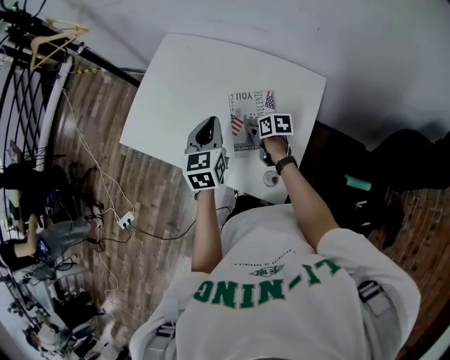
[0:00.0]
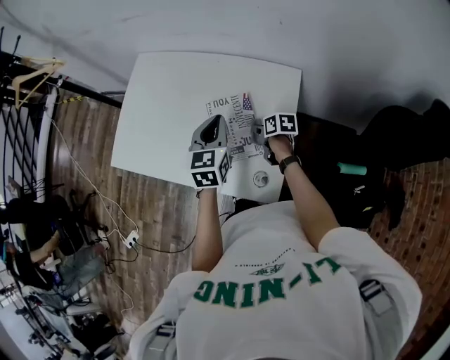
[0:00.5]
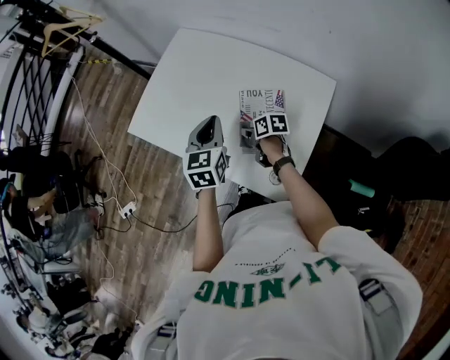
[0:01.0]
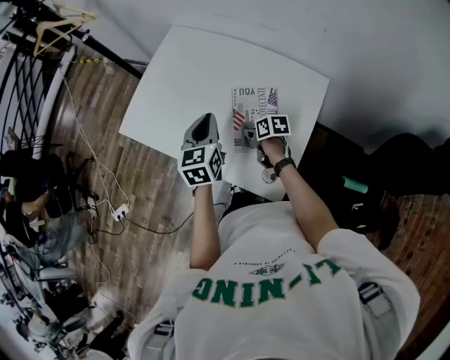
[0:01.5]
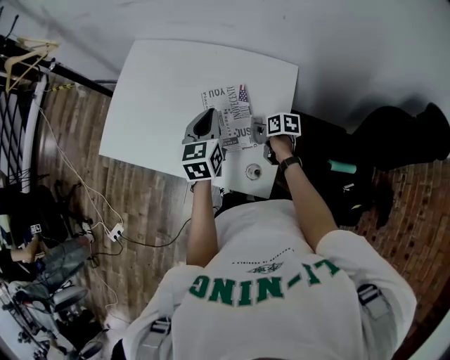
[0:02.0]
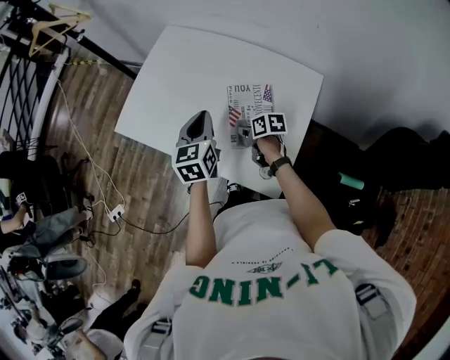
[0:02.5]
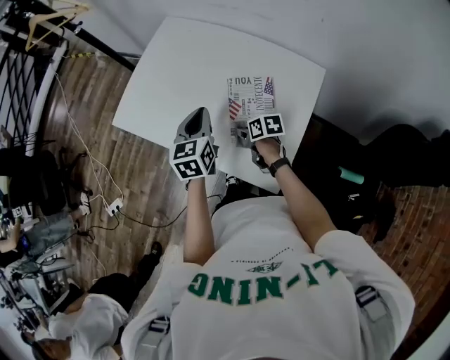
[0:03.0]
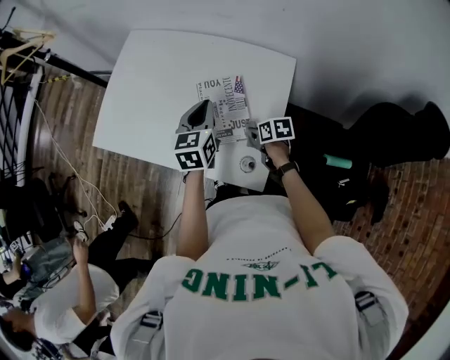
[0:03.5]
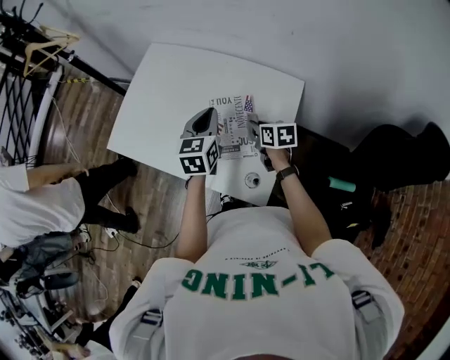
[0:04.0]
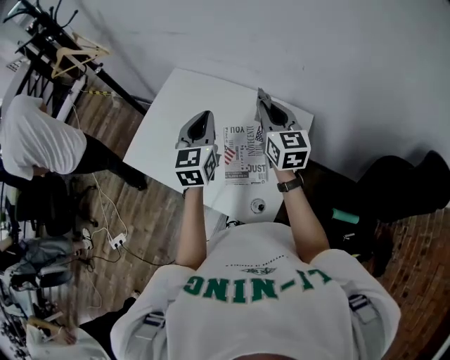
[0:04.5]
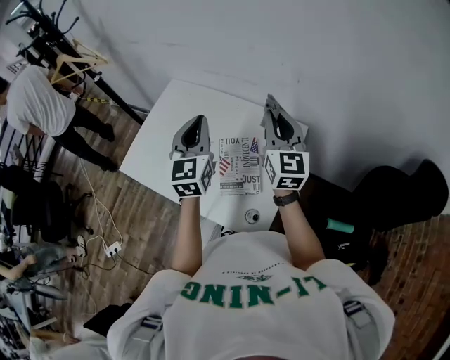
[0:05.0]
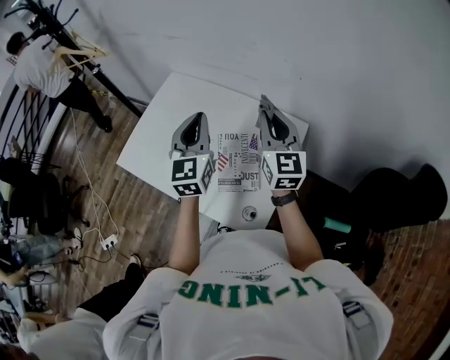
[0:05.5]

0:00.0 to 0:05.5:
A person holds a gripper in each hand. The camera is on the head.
0:00.0 to 0:02.0: The left gripper moves left and right over some 10 cm, changing direction 2 times. Meanwhile the right gripper goes left and right, about 15 cm each way, reversing 2 times.
0:02.0 to 0:03.5: The left gripper reaches about 10 cm to the left, then returns. The right gripper moves about 15 cm to the left and comes back.
0:03.5 to 0:05.5: The right gripper shifts roughly 35 cm upward, and angles its fingers upward, by approximately 50 degrees, while the left gripper heads upward, covering roughly 20 cm, and turns by roughly 30 degrees.

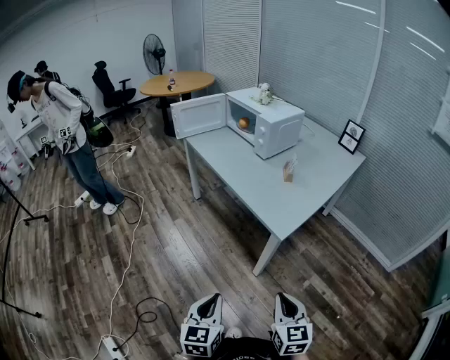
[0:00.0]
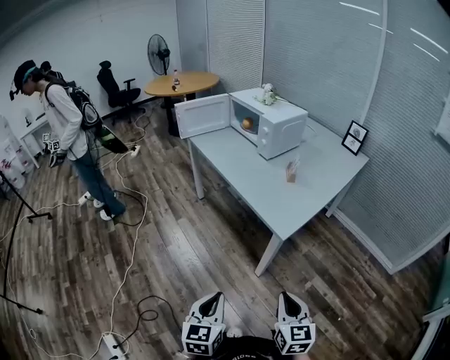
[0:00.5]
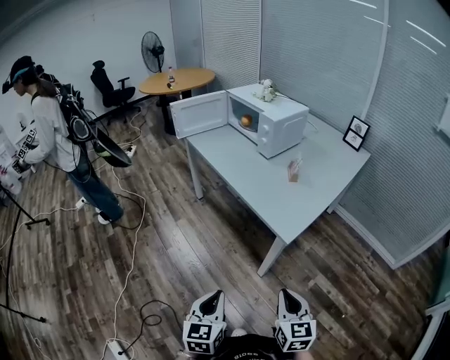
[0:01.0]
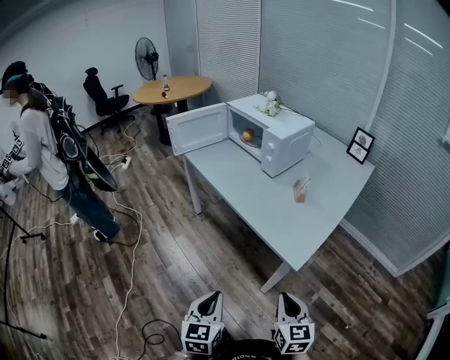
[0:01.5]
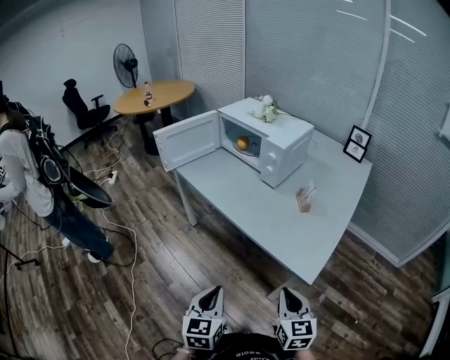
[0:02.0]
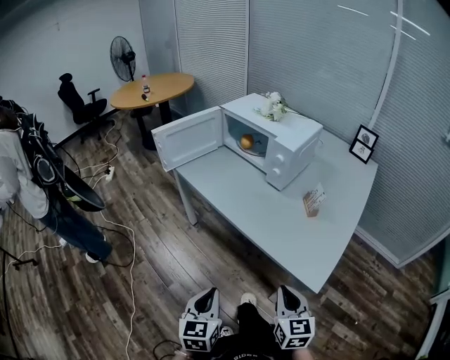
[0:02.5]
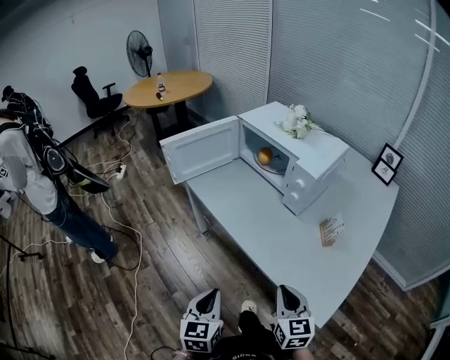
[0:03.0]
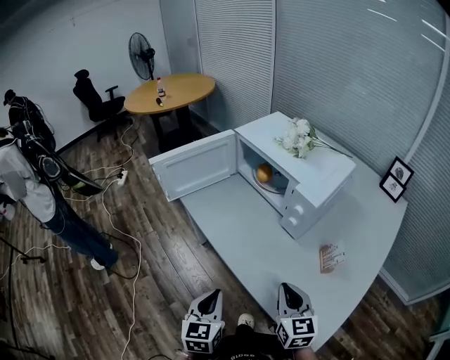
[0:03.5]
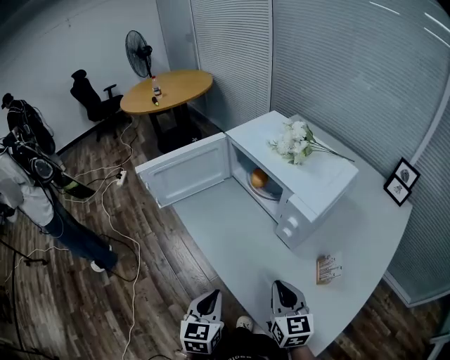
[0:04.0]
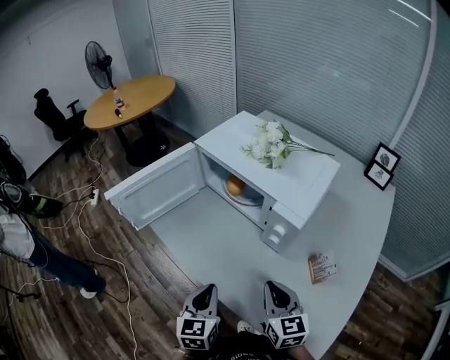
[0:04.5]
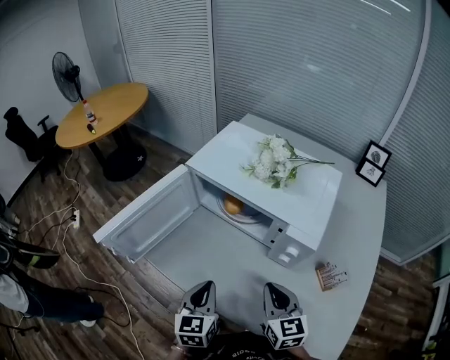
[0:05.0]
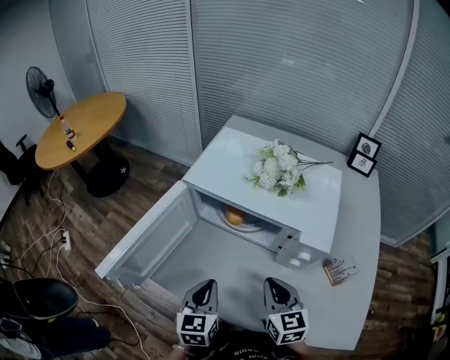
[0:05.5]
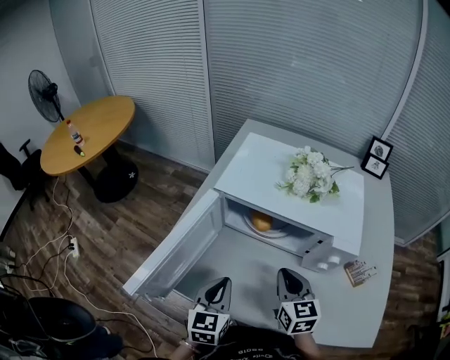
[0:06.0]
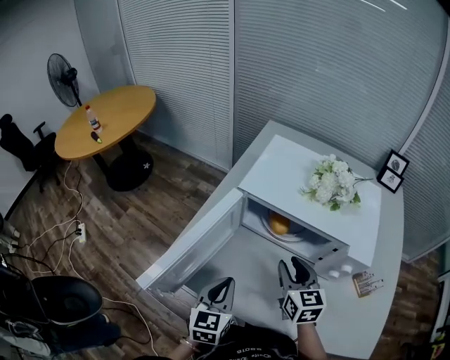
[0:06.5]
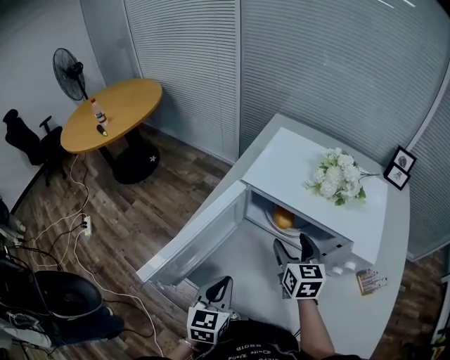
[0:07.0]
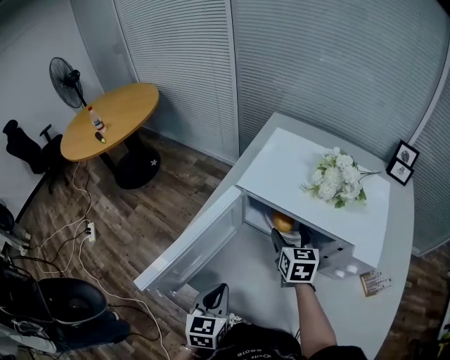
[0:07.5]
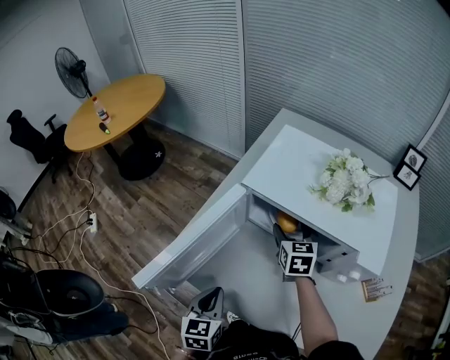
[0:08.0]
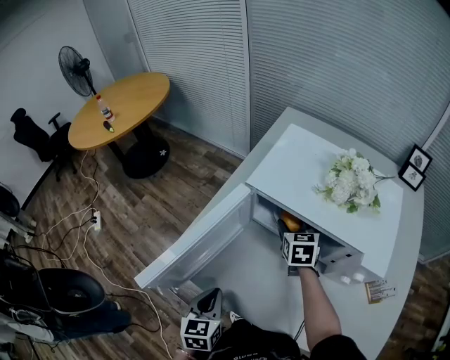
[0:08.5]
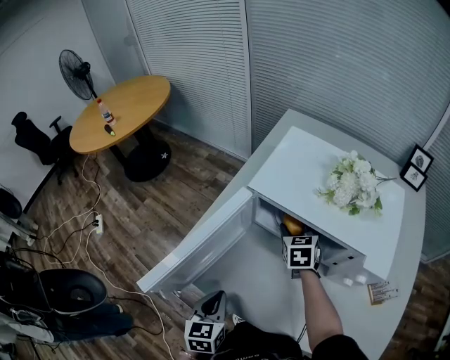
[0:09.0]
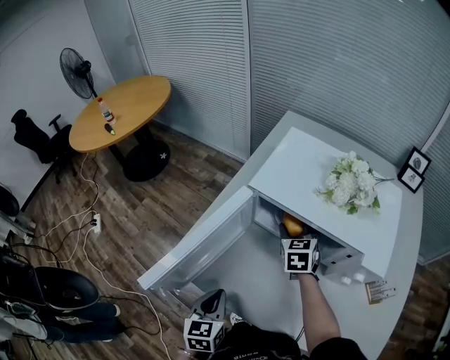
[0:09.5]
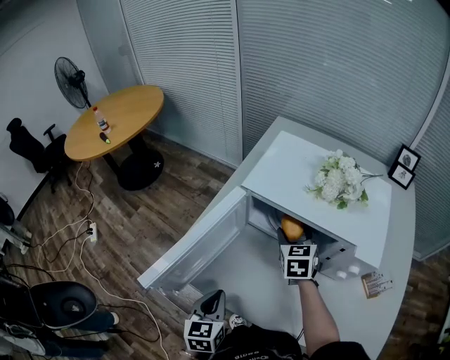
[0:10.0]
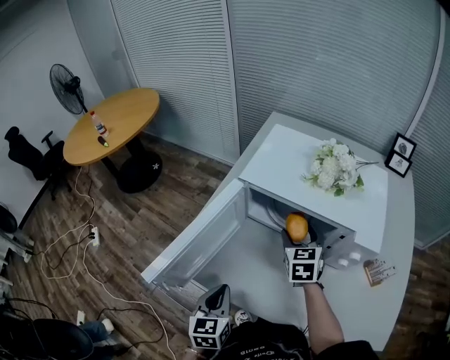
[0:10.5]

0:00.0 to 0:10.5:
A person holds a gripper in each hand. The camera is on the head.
0:00.0 to 0:02.0: Both grippers move forward and to the left, approximately 25 cm.
0:02.0 to 0:04.0: Both grippers travel together forward, roughly 35 cm.
0:04.0 to 0:06.5: The left gripper ends up about 35 cm from where it was, and rotates roughly 30 degrees. The right gripper changes place by about 30 cm, changes its angle by about 30 degrees, and opens up.
0:06.5 to 0:08.5: The right gripper travels forward by about 15 cm, and opens up, while the left gripper heads downward, covering roughly 5 cm.
0:08.5 to 0:10.5: The right gripper moves backward, approximately 10 cm.

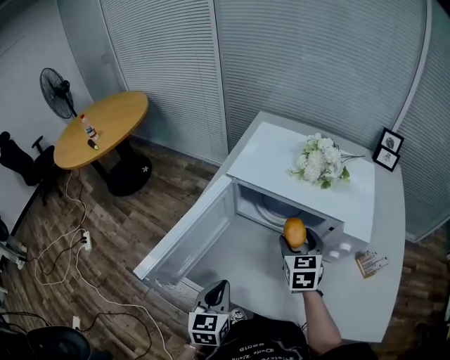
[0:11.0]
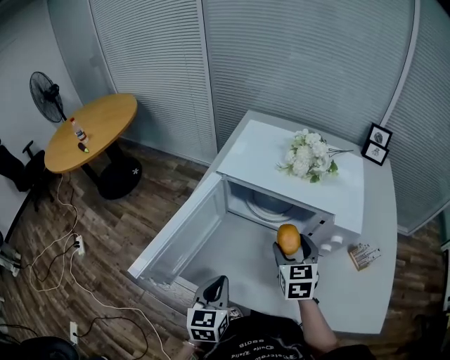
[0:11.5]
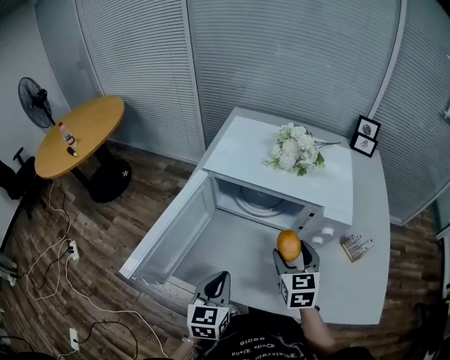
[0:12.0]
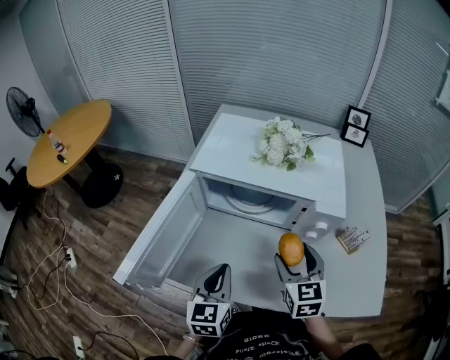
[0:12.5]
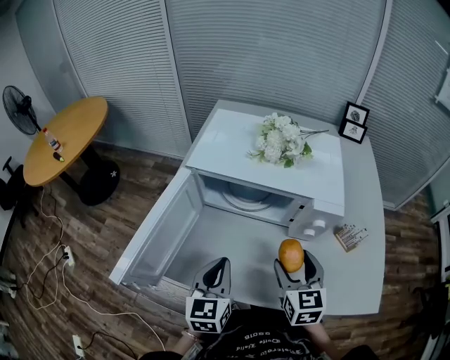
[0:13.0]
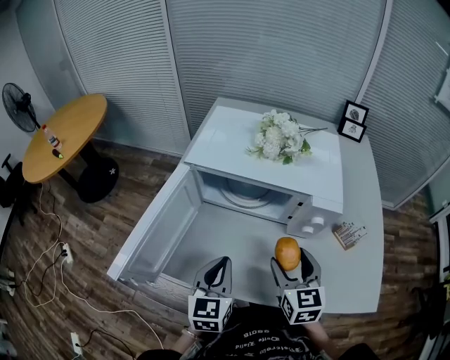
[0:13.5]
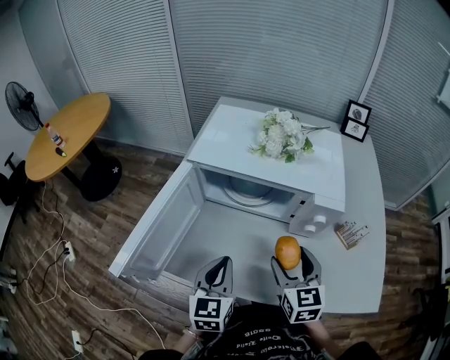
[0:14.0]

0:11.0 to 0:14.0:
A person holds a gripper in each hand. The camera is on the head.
0:11.0 to 0:12.5: The left gripper is displaced to the right by approximately 5 cm, while the right gripper heads backward and to the right, covering about 10 cm.
0:12.5 to 0:14.0: There are only small adjustments of the grippers.

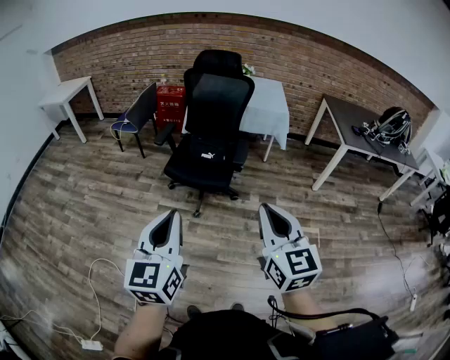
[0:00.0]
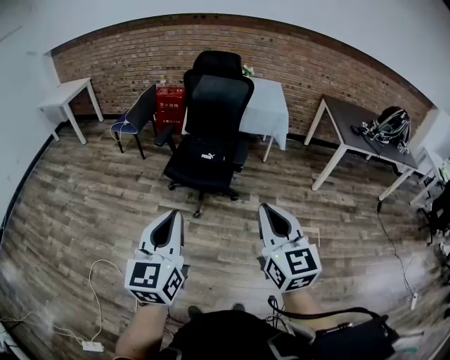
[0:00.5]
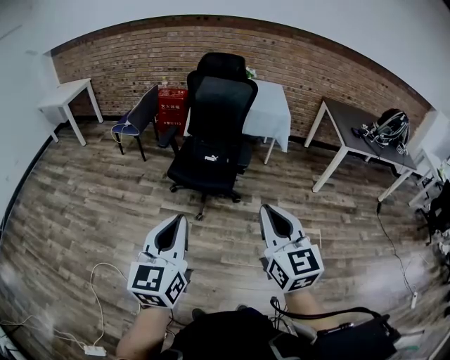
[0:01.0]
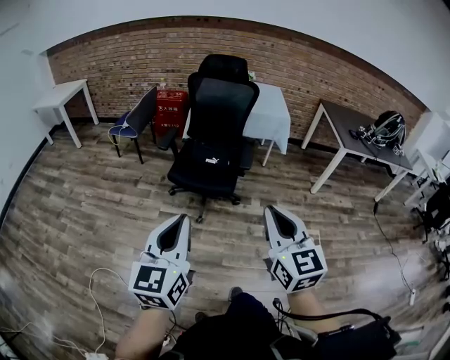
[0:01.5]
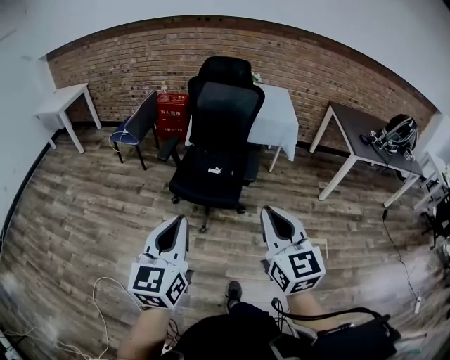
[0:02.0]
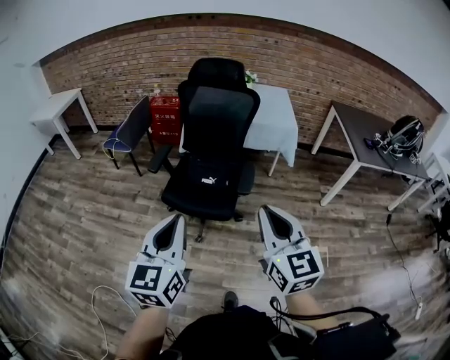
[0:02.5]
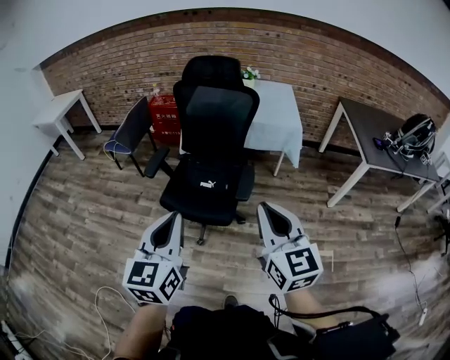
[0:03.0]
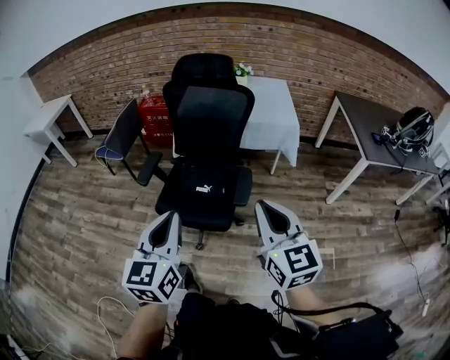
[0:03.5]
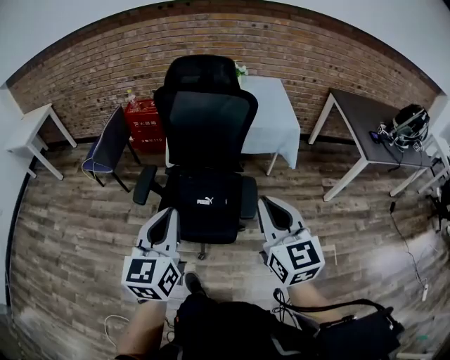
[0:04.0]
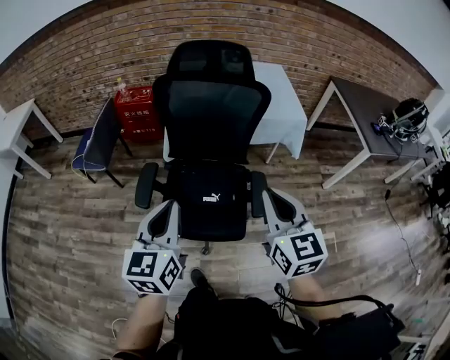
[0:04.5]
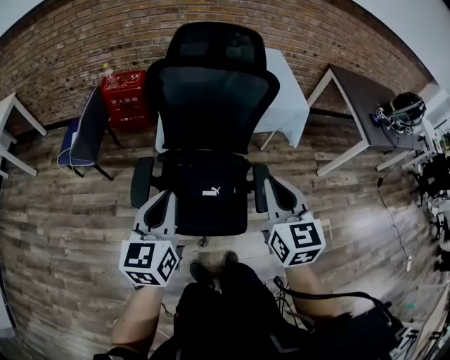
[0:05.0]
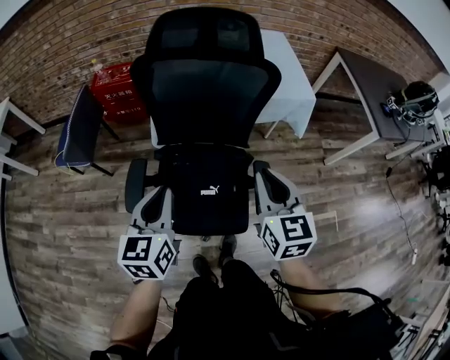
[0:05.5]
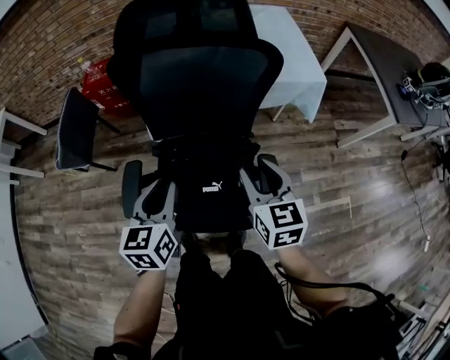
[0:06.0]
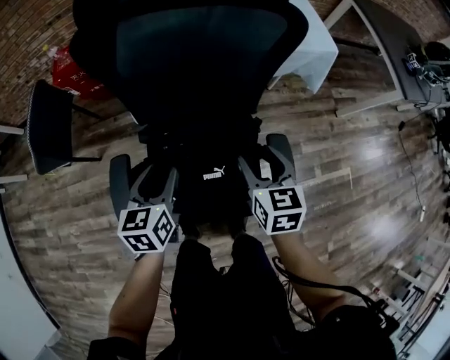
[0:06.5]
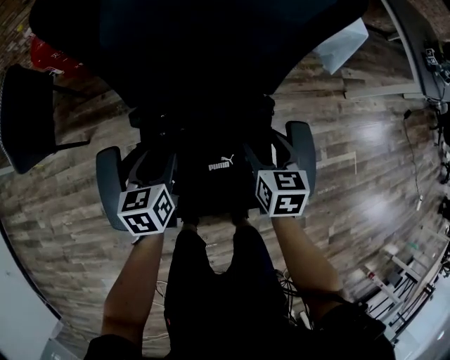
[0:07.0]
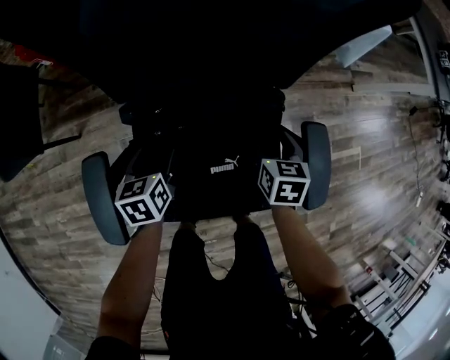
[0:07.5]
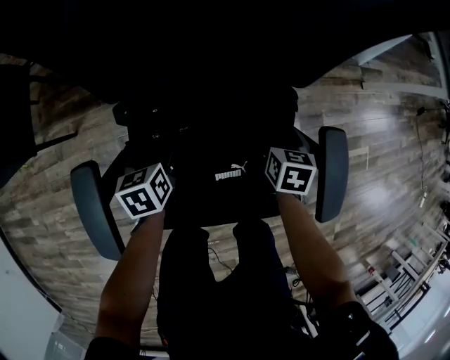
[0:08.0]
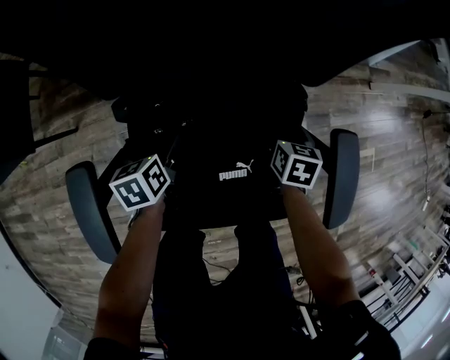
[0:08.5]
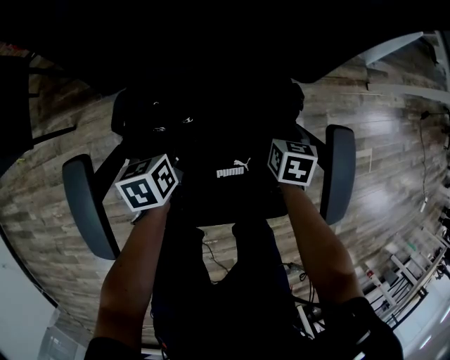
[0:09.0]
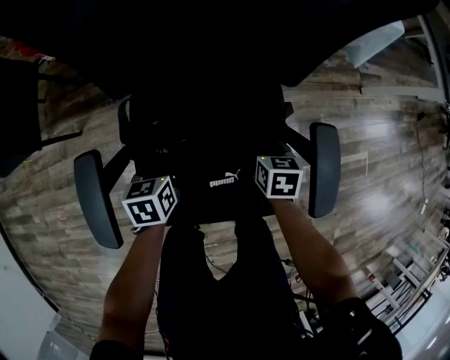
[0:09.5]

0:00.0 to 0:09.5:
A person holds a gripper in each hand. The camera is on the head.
0:00.0 to 0:02.0: The right gripper moves forward and to the left, some 10 cm; the left gripper travels forward by roughly 10 cm.
0:02.0 to 0:04.0: Both grippers travel together forward, approximately 35 cm.
0:04.0 to 0:05.5: The right gripper goes roughly 20 cm forward and downward. The left gripper heads forward, downward and to the left, covering some 25 cm.
0:05.5 to 0:07.5: The right gripper goes roughly 40 cm downward, tilts its fingers about 30 degrees downward, and opens its fingers; the left gripper travels downward and forward by about 40 cm, rotates about 30 degrees, and opens.
0:07.5 to 0:09.5: The right gripper moves downward, about 5 cm, and closes. The left gripper closes.
